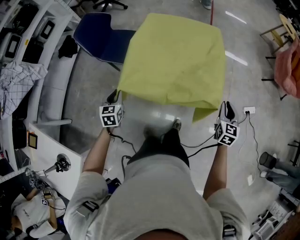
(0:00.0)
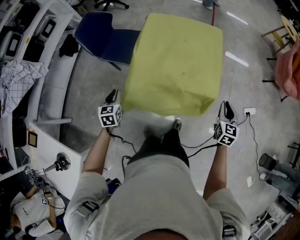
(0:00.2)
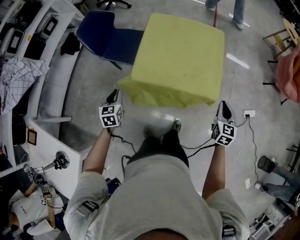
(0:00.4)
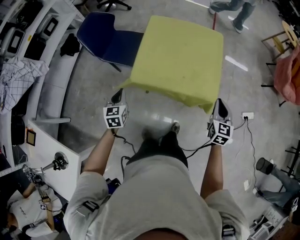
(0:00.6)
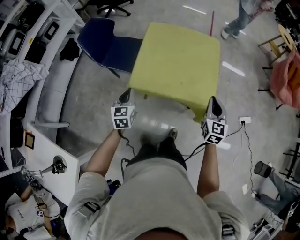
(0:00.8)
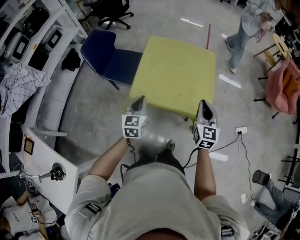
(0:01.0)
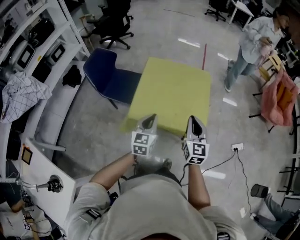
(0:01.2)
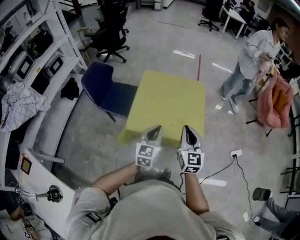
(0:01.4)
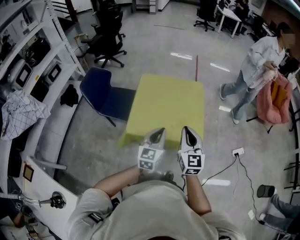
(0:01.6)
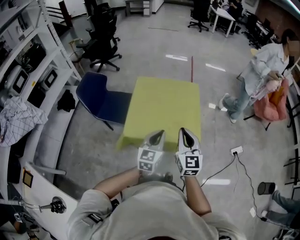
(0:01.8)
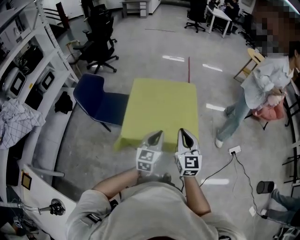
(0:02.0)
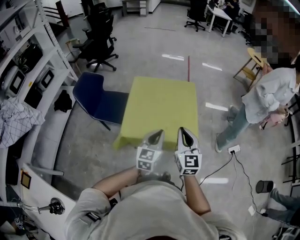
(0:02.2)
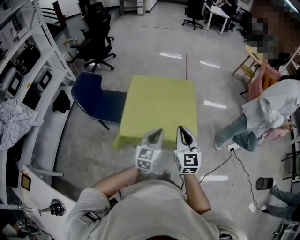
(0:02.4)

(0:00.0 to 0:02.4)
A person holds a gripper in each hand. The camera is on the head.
0:00.0 - 0:01.2: The right gripper moves to the left and upward, about 20 cm, and rotates about 20 degrees. Meanwhile the left gripper goes some 25 cm to the right and upward, and turns by some 20 degrees.
0:01.2 - 0:02.4: The left gripper travels to the right by roughly 10 cm.

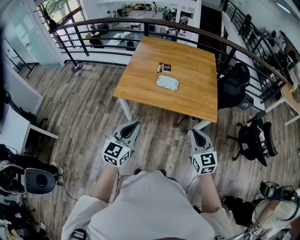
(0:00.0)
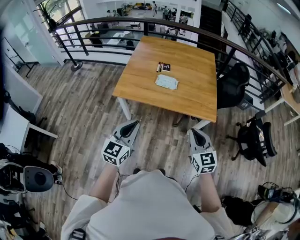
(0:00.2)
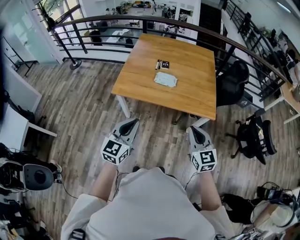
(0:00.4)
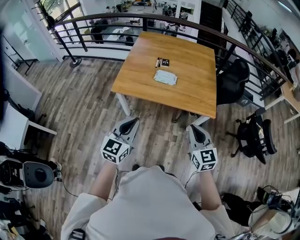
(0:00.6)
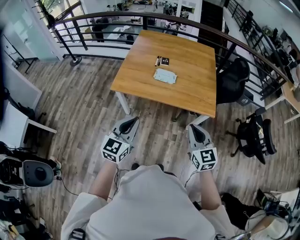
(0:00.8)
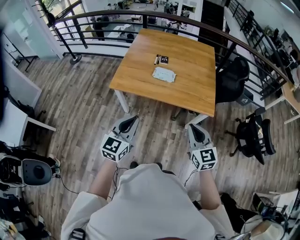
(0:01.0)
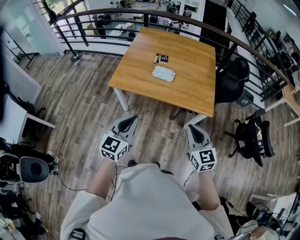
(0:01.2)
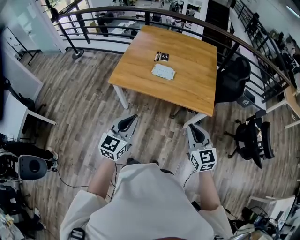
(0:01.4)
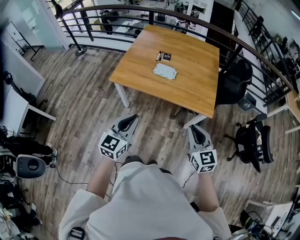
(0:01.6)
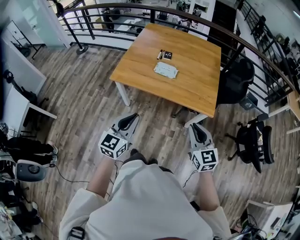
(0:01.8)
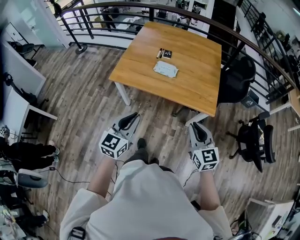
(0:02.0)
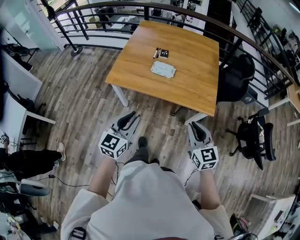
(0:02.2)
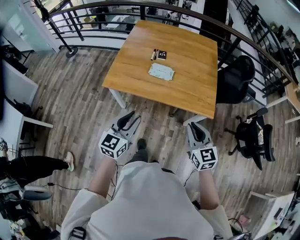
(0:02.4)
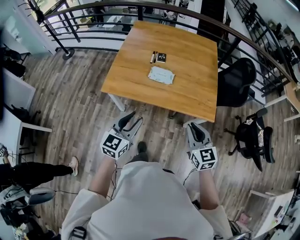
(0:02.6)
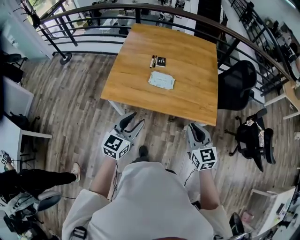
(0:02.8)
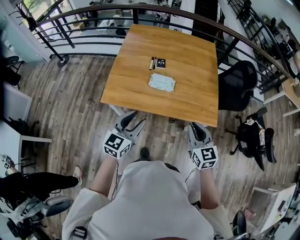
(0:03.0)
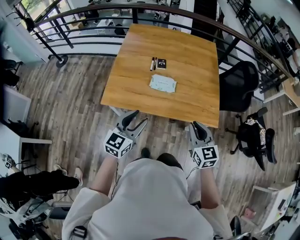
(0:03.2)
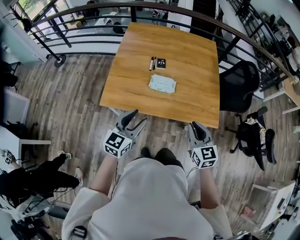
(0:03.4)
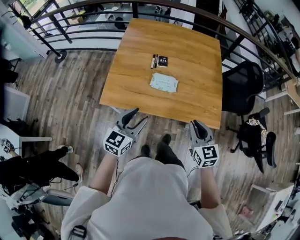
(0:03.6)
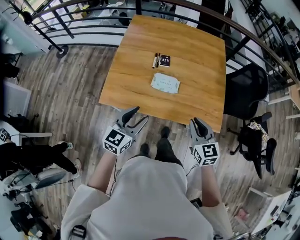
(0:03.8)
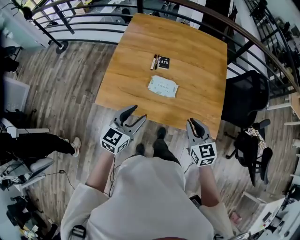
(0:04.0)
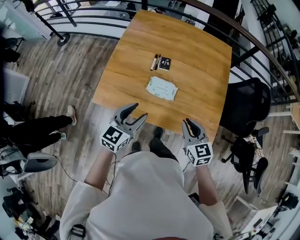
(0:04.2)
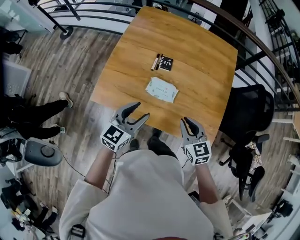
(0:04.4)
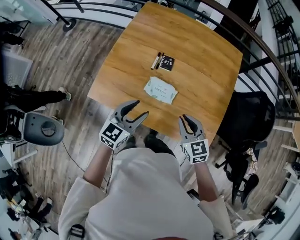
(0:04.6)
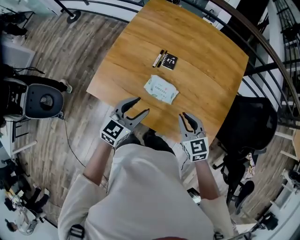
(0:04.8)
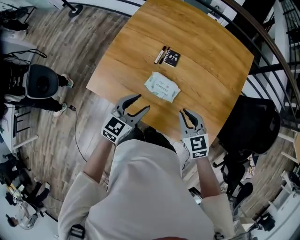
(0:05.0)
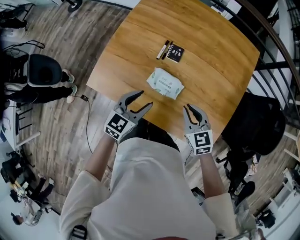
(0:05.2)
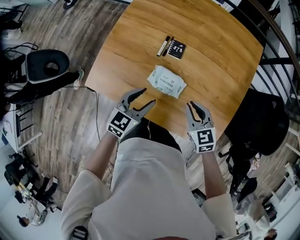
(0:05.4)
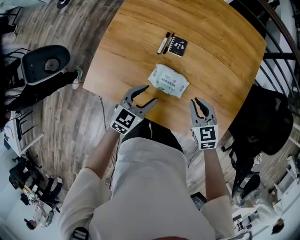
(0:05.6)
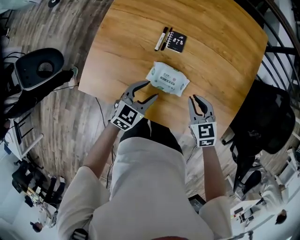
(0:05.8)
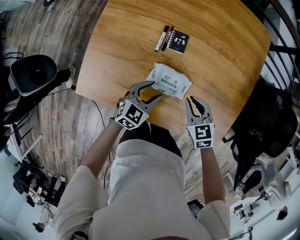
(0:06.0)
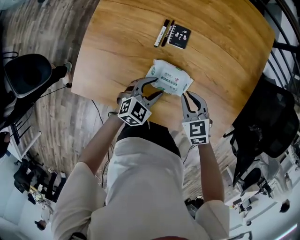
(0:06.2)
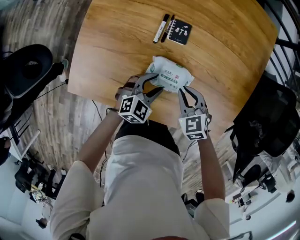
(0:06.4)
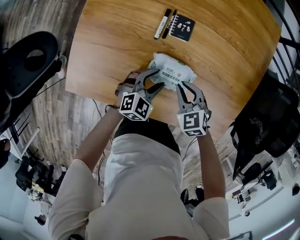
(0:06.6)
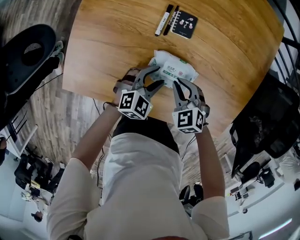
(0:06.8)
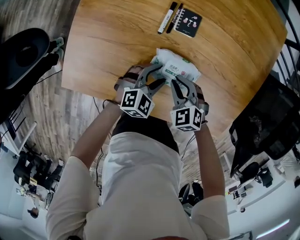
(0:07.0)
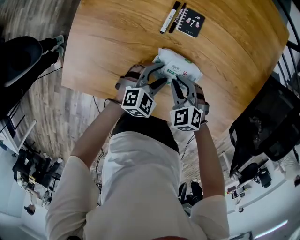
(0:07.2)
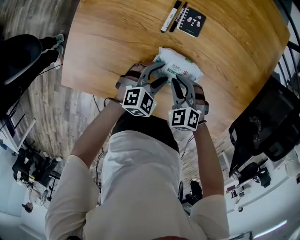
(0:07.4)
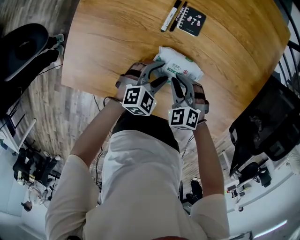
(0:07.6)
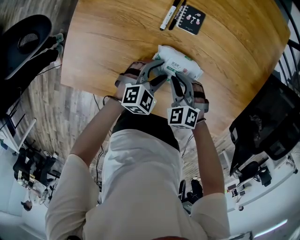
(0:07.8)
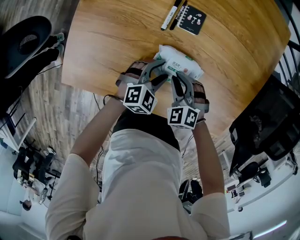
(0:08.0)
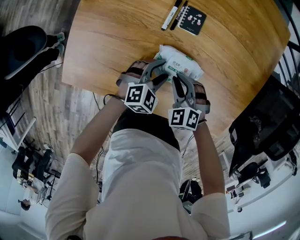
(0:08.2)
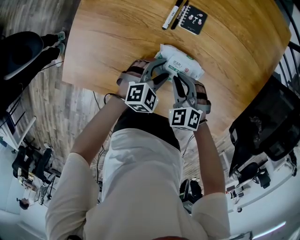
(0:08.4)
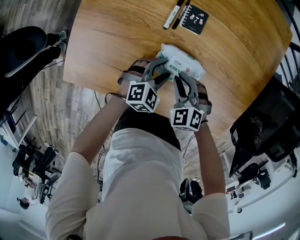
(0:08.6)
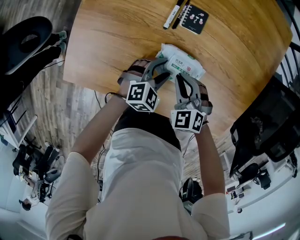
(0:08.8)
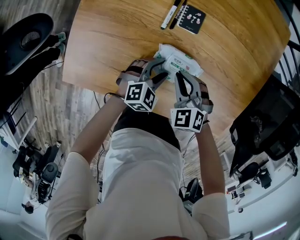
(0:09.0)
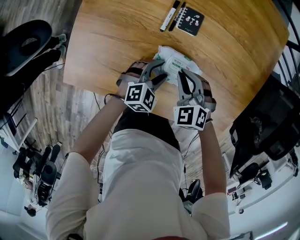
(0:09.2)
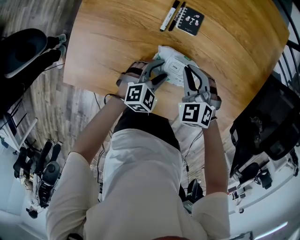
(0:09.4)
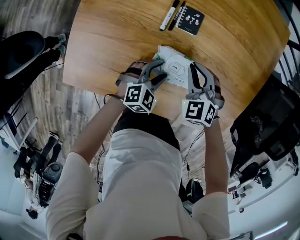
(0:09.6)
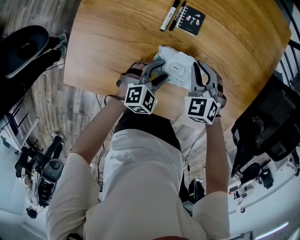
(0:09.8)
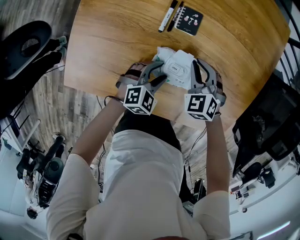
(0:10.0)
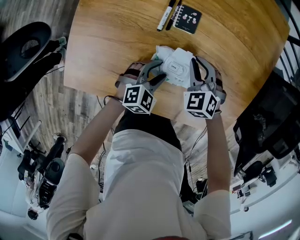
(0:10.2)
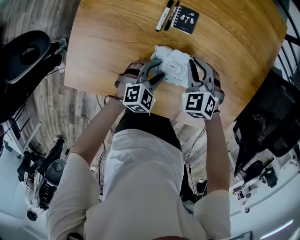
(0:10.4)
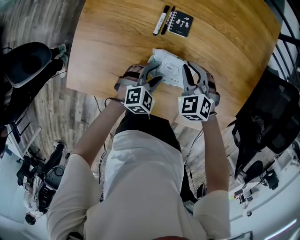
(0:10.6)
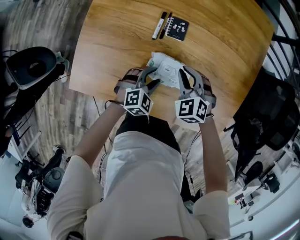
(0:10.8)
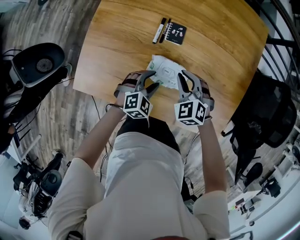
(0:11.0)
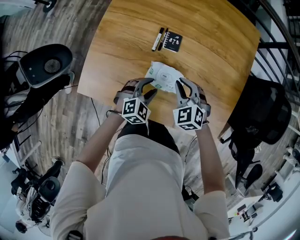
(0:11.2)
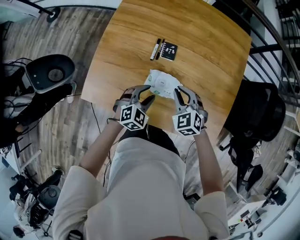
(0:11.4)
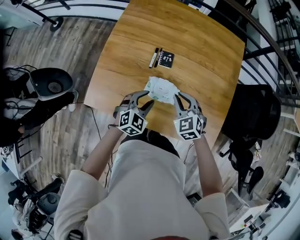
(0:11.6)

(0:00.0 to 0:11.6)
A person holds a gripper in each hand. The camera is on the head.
0:00.0 - 0:01.4: The grippers both shift to the right by roughly 5 cm.
0:01.4 - 0:02.8: Both grippers travel together forward, roughly 20 cm. The left gripper opens.
0:02.8 - 0:04.4: Both grippers move forward, approximately 25 cm.
0:04.4 - 0:05.8: The two grippers go some 25 cm downward and forward.
0:05.8 - 0:07.2: The left gripper shifts some 15 cm downward, and rotates about 20 degrees. Meanwhile the right gripper shifts about 20 cm downward and to the left, and rotates approximately 30 degrees.
0:07.2 - 0:08.8: The grippers move only a little.
0:08.8 - 0:10.2: The right gripper shifts approximately 10 cm forward.
0:10.2 - 0:11.6: The right gripper heads upward and backward, covering approximately 25 cm. Meanwhile the left gripper shifts about 20 cm upward.

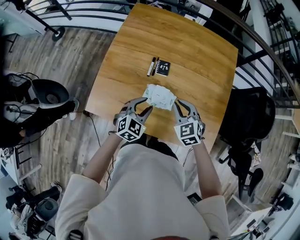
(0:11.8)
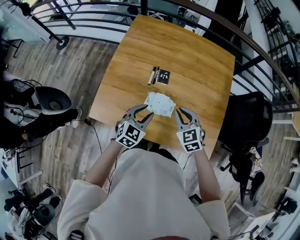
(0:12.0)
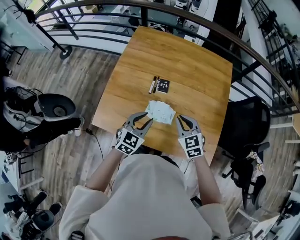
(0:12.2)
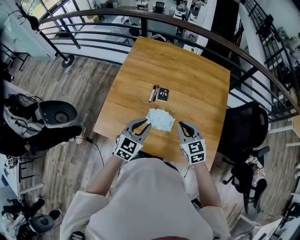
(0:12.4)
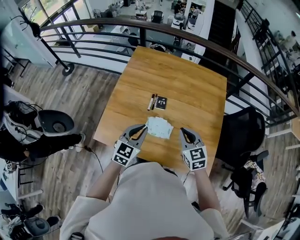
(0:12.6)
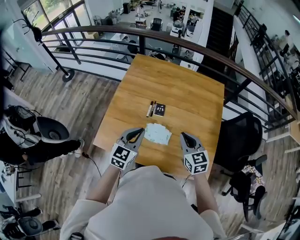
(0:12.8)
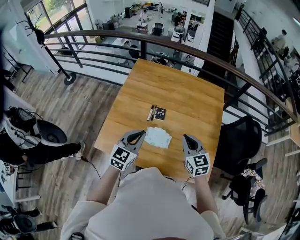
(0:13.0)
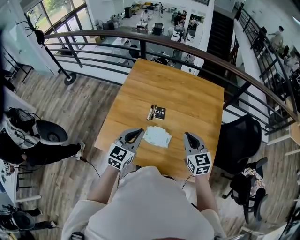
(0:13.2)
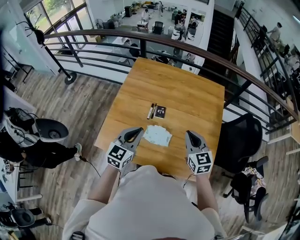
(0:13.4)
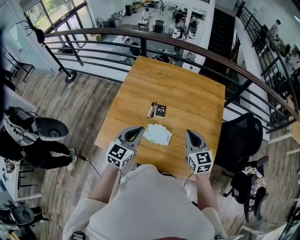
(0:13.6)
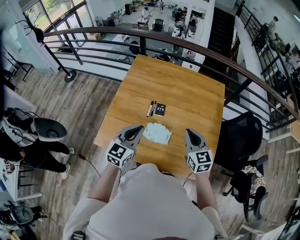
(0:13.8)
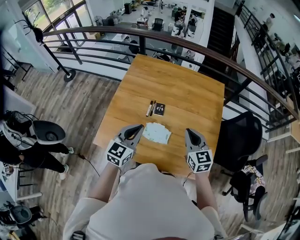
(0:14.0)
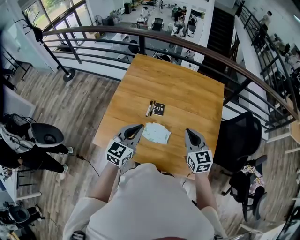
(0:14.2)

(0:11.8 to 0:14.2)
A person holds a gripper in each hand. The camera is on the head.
0:11.8 - 0:13.0: The right gripper travels upward and to the right by roughly 15 cm, and turns by about 30 degrees. The left gripper moves upward, roughly 20 cm, turns by about 30 degrees, and closes its fingers.
0:13.0 - 0:14.2: The grippers stay close to where they were, moving slightly.

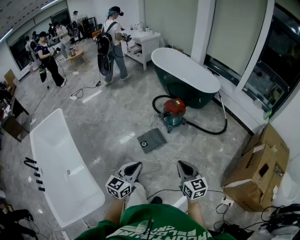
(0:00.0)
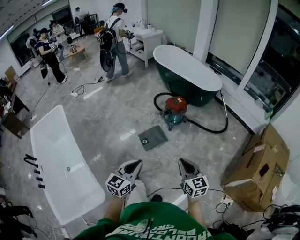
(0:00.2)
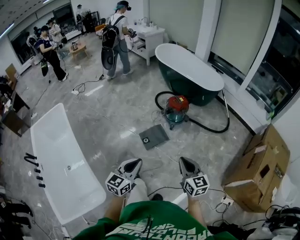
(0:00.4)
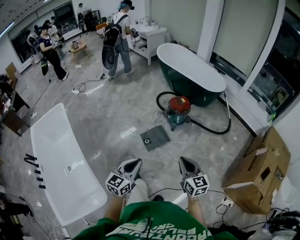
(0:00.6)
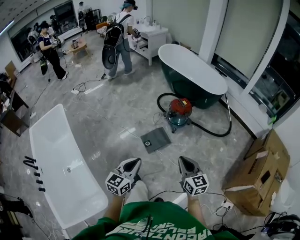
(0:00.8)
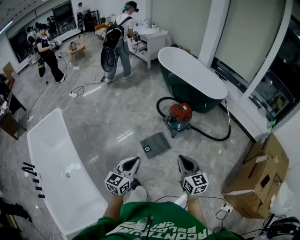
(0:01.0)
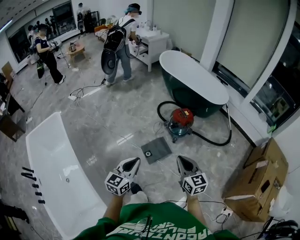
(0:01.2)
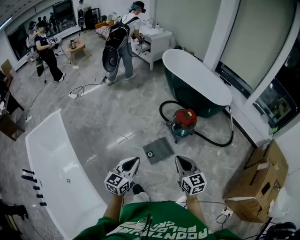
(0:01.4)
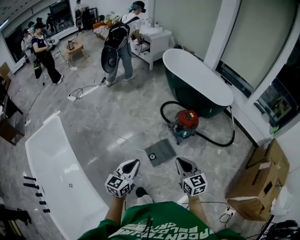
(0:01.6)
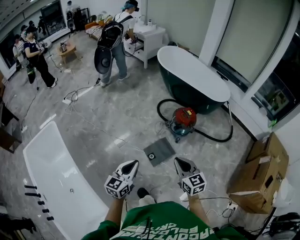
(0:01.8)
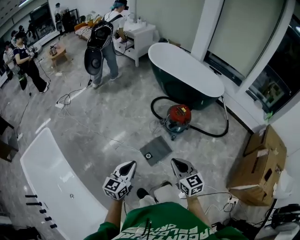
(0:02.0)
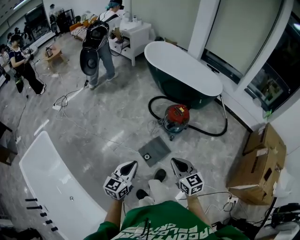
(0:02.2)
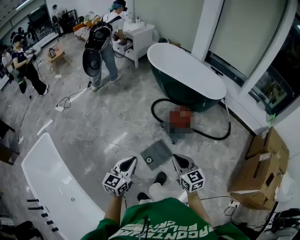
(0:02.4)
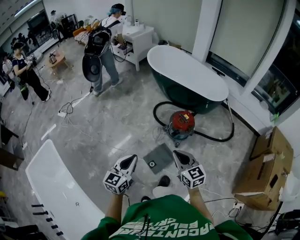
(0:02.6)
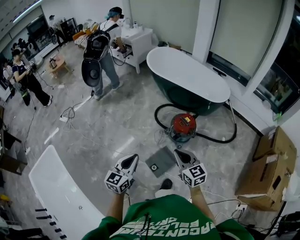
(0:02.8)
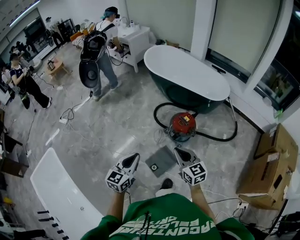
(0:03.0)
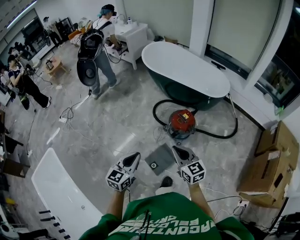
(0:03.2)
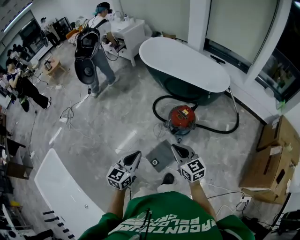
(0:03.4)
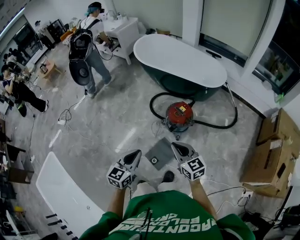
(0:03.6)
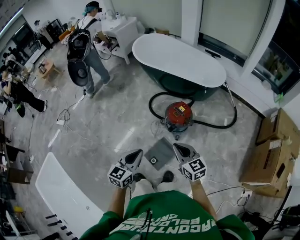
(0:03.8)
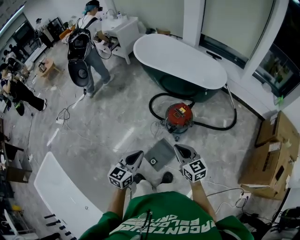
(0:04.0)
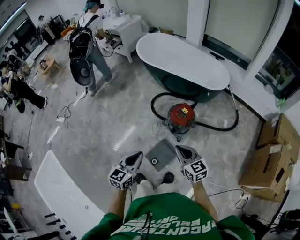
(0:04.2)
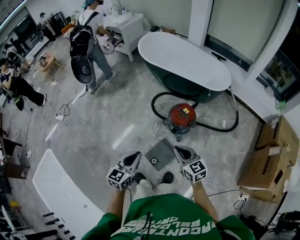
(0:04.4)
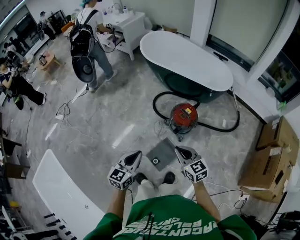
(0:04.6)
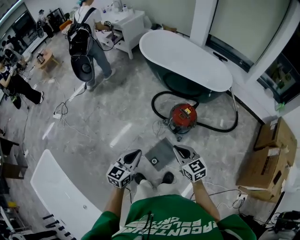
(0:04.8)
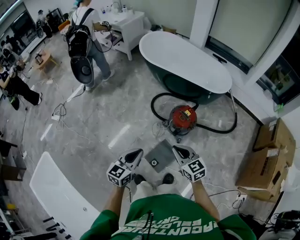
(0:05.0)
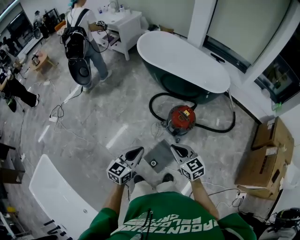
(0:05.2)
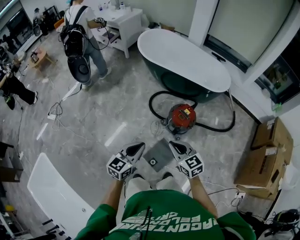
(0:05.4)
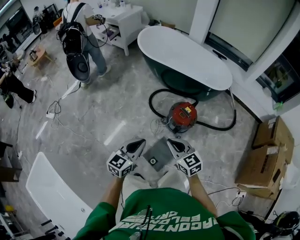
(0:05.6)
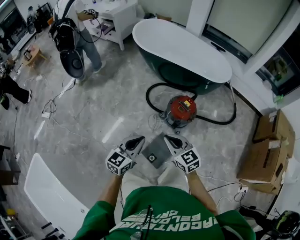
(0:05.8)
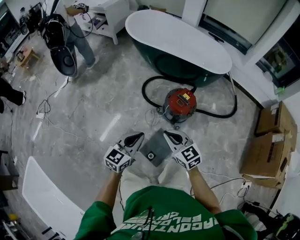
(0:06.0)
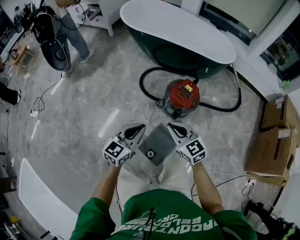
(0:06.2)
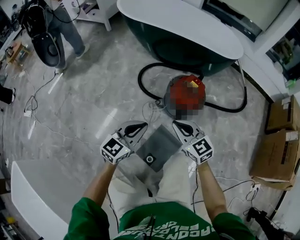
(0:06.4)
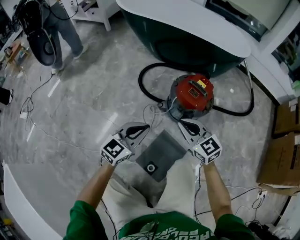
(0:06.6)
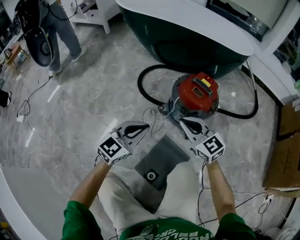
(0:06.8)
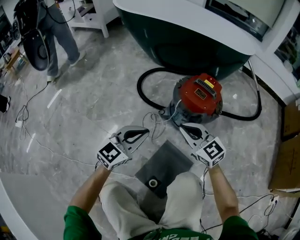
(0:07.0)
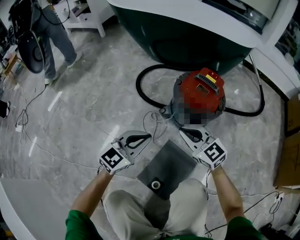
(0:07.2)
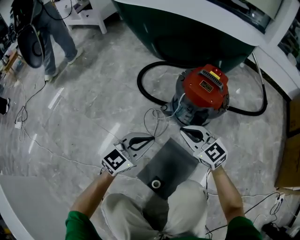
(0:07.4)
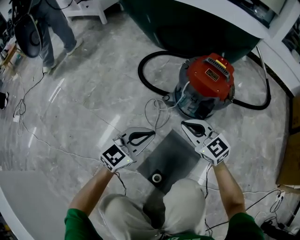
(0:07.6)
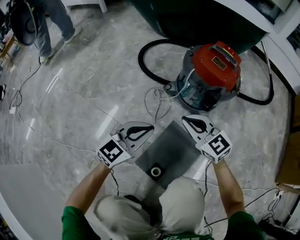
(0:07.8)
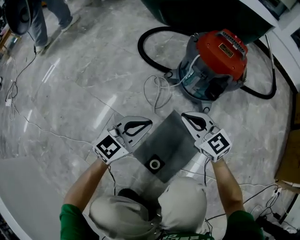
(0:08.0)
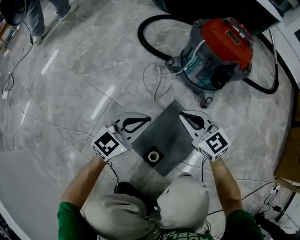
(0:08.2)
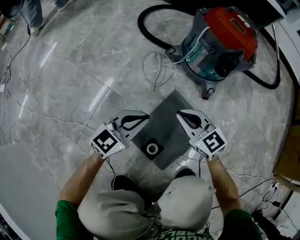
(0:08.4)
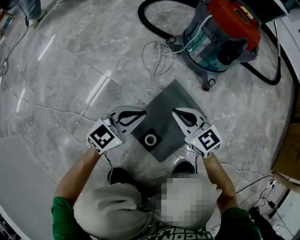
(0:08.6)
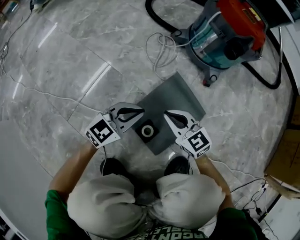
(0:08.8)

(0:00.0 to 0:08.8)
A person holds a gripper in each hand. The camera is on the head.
0:00.0 - 0:01.4: Both grippers move forward and to the left, approximately 30 cm.
0:01.4 - 0:03.0: The grippers both shift forward by approximately 25 cm.
0:03.0 - 0:04.4: The left gripper shifts roughly 5 cm forward, while the right gripper shifts by roughly 5 cm.
0:04.4 - 0:05.8: The right gripper moves to the left, downward and forward, roughly 15 cm; the left gripper is displaced forward and downward by roughly 15 cm.
0:05.8 - 0:07.4: Both grippers travel together downward, some 50 cm. The left gripper swivels about 30 degrees.
0:07.4 - 0:08.8: The two grippers go about 30 cm downward and backward.
